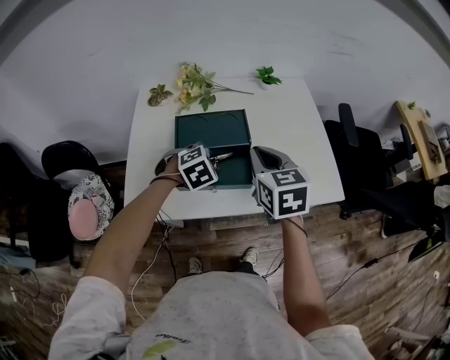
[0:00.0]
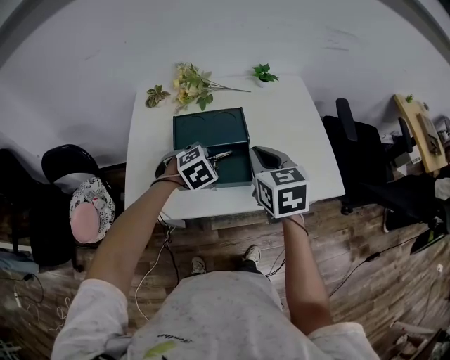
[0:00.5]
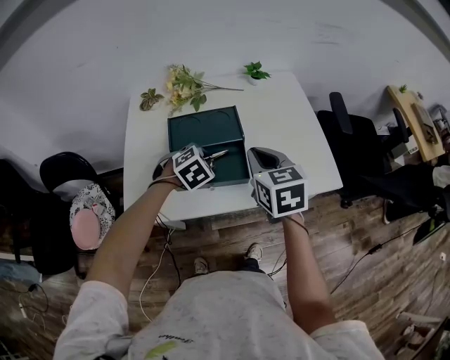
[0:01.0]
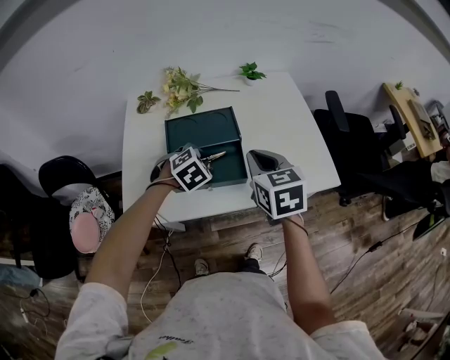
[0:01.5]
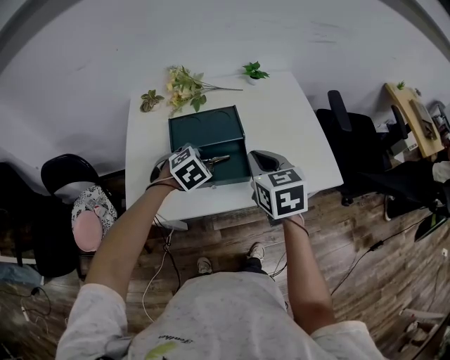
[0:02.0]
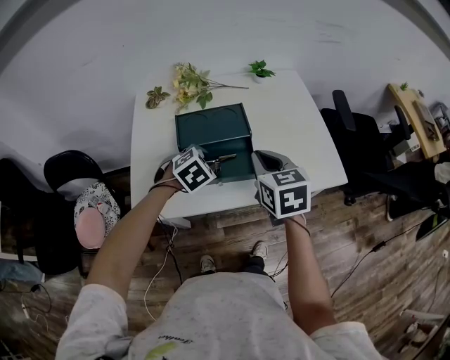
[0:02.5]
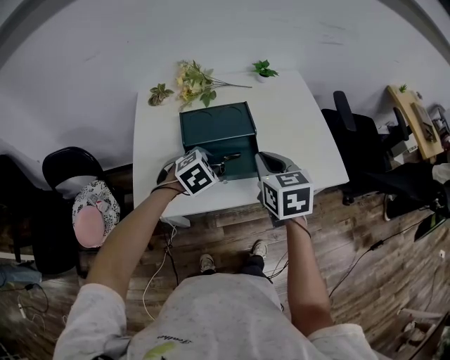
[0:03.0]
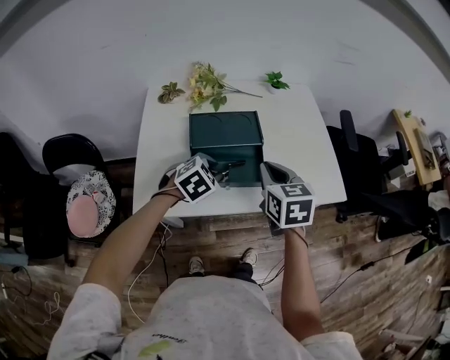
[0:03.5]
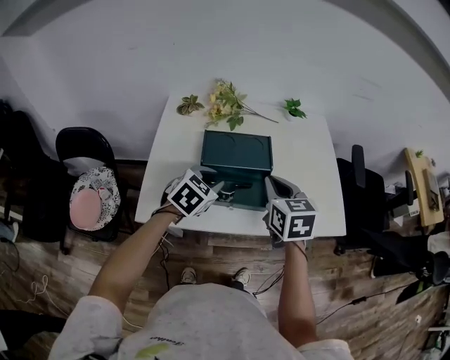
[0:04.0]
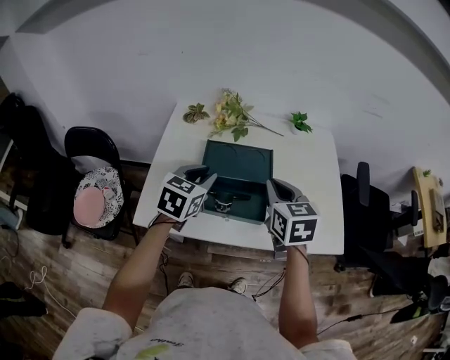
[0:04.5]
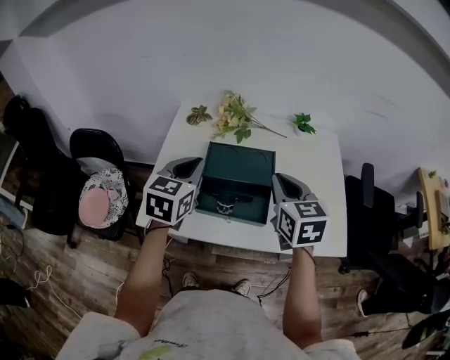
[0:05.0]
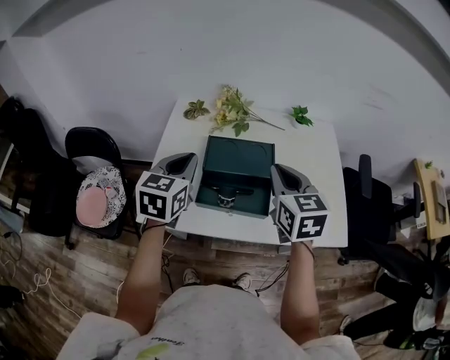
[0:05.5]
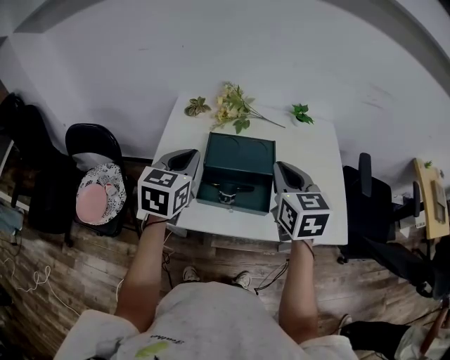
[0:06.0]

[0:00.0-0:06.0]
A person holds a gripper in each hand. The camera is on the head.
0:00.0 to 0:02.0: The grippers make only small movements.
0:02.0 to 0:04.0: The left gripper ends up some 5 cm from where it was, and swivels approximately 30 degrees.
0:04.0 to 0:06.0: The right gripper shifts roughly 5 cm upward, while the left gripper goes about 15 cm upward and to the left, turns by roughly 40 degrees, and closes up.

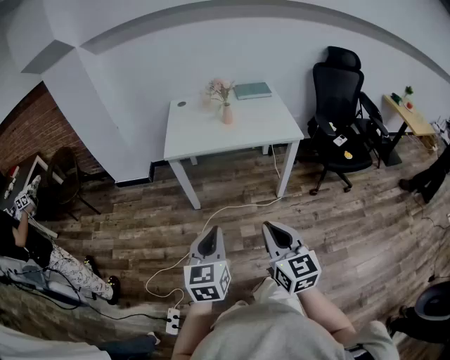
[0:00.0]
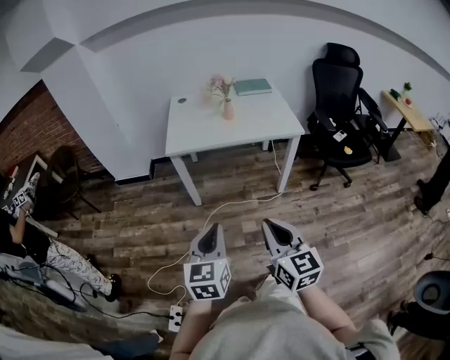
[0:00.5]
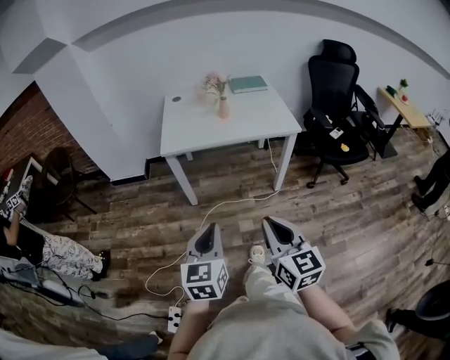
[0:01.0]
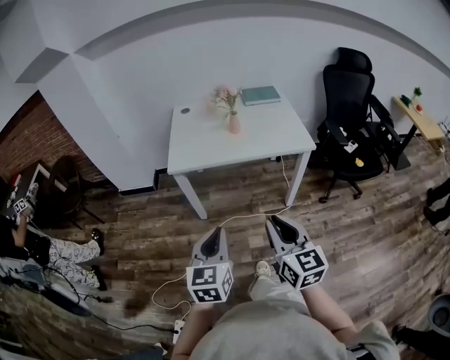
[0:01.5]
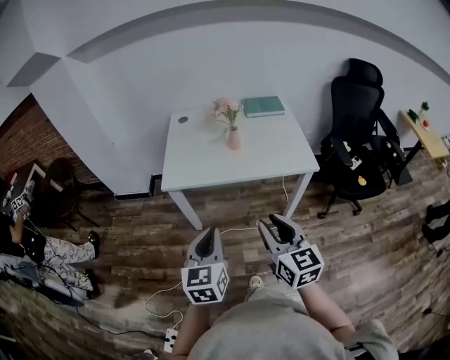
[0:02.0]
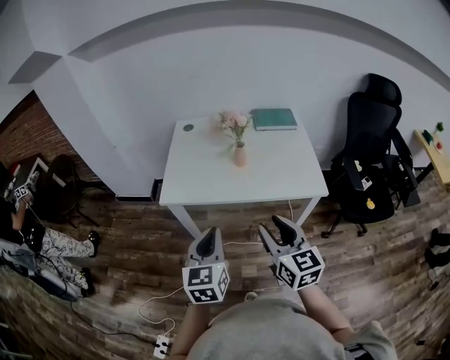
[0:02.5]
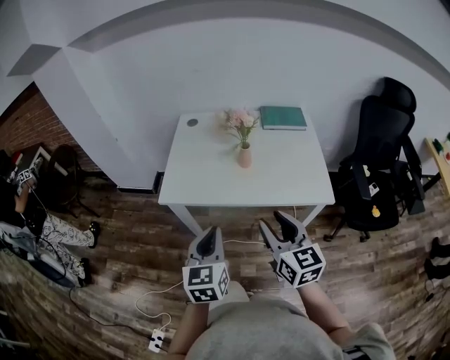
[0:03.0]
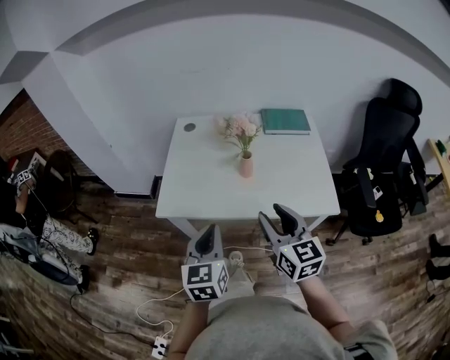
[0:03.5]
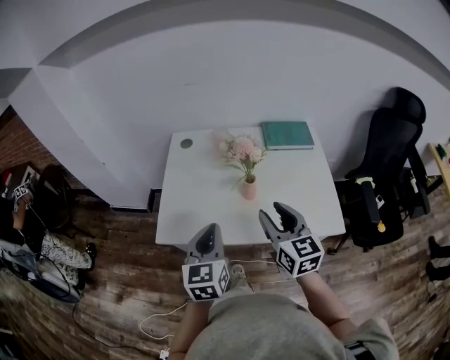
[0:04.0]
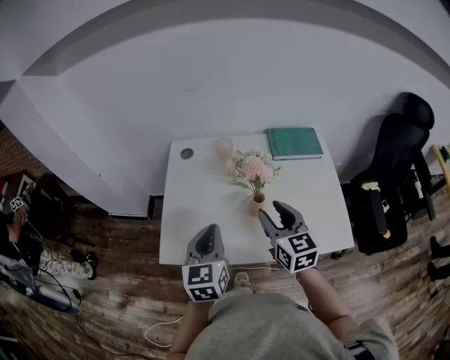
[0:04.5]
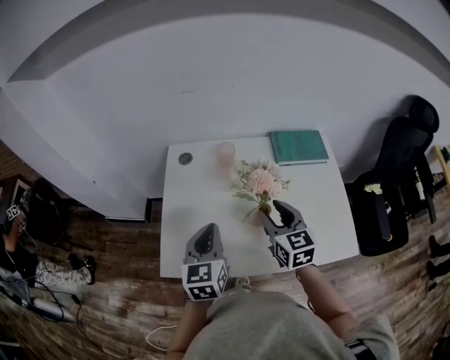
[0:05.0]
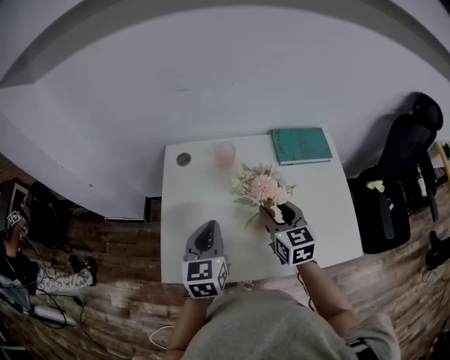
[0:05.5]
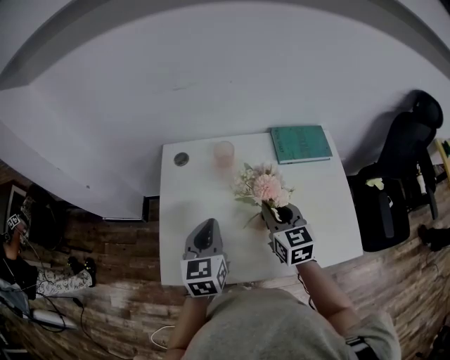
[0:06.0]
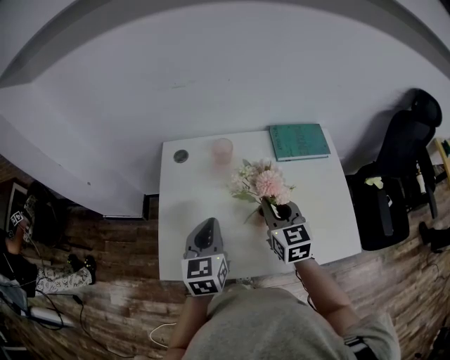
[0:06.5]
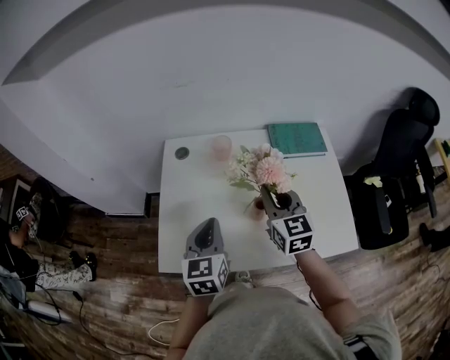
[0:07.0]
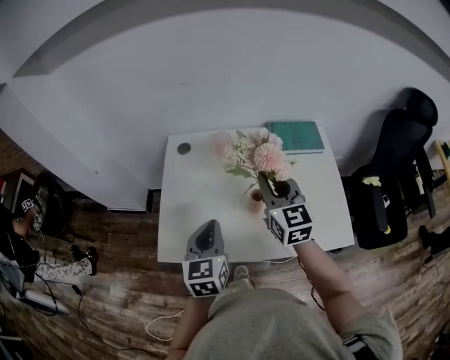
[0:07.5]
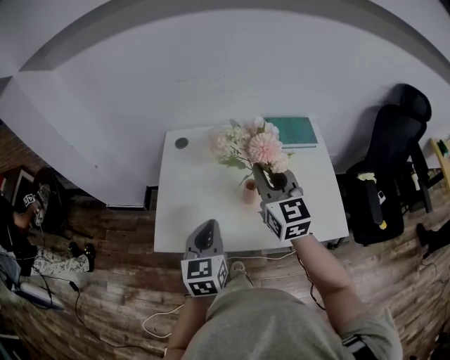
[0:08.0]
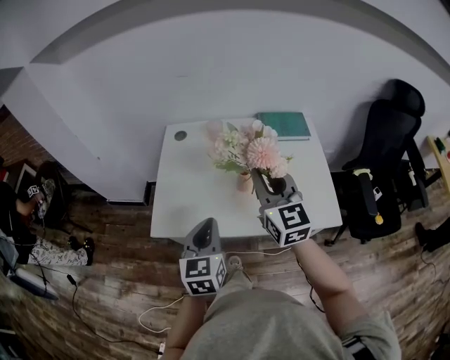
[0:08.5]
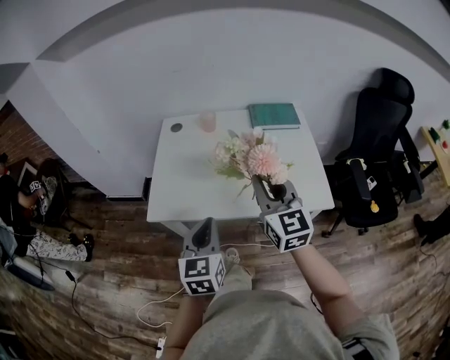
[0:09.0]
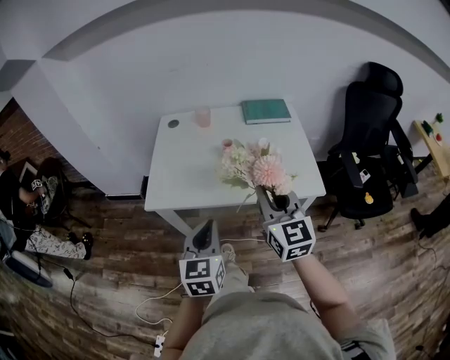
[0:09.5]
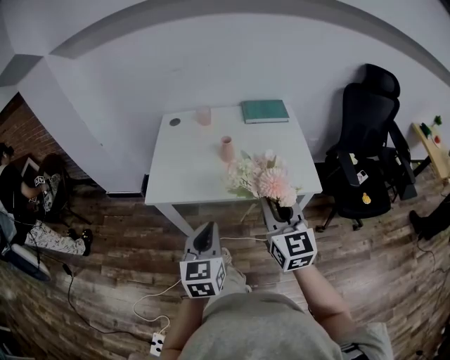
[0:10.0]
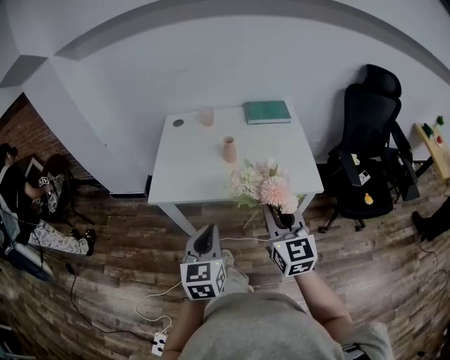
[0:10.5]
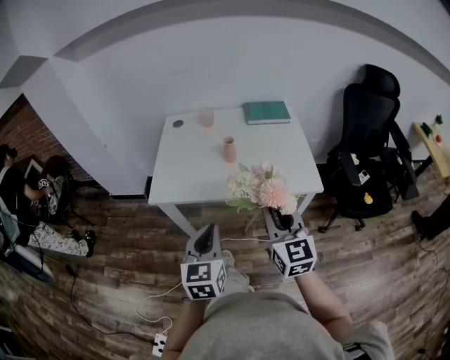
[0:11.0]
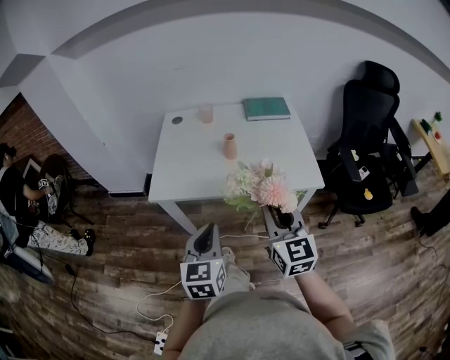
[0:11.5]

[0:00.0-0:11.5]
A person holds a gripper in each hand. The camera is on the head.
0:00.0 to 0:02.0: Both grippers move forward, approximately 25 cm. The right gripper opens its fingers.
0:02.0 to 0:04.0: Both grippers move forward, roughly 35 cm.
0:04.0 to 0:06.0: The right gripper is displaced forward and downward by approximately 20 cm, and closes its fingers. The left gripper shifts about 20 cm forward.
0:06.0 to 0:07.5: The right gripper goes about 10 cm upward, while the left gripper goes approximately 10 cm backward.
0:07.5 to 0:09.5: The grippers both shift backward by approximately 30 cm.
0:09.5 to 0:11.5: The left gripper is displaced backward by some 5 cm; the right gripper shifts about 10 cm backward.

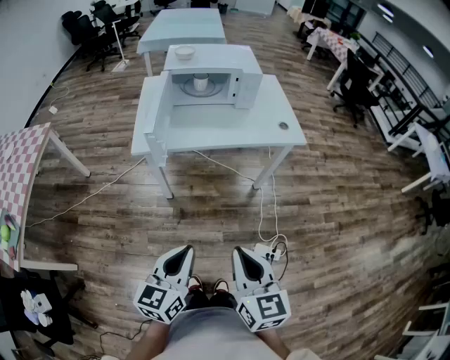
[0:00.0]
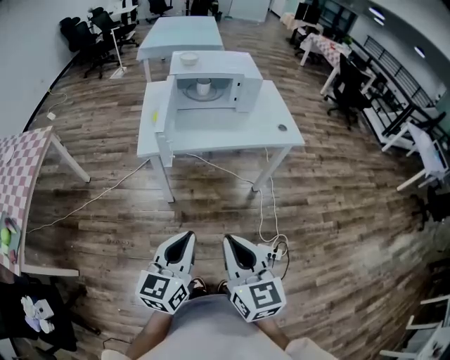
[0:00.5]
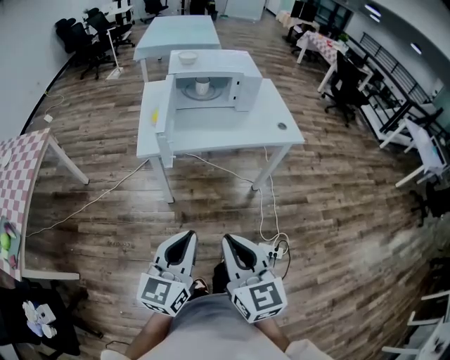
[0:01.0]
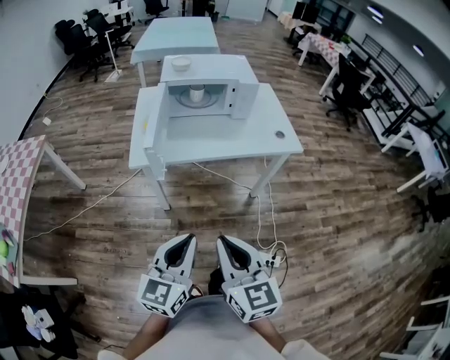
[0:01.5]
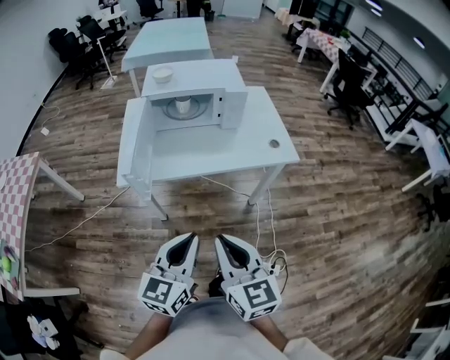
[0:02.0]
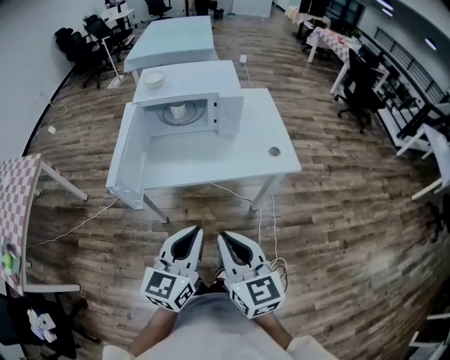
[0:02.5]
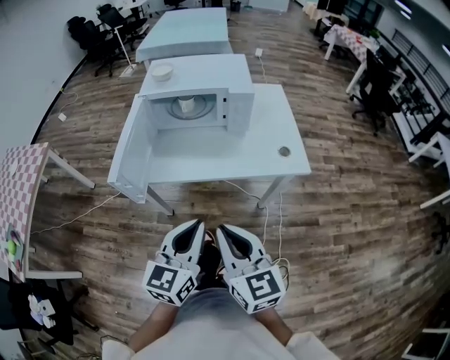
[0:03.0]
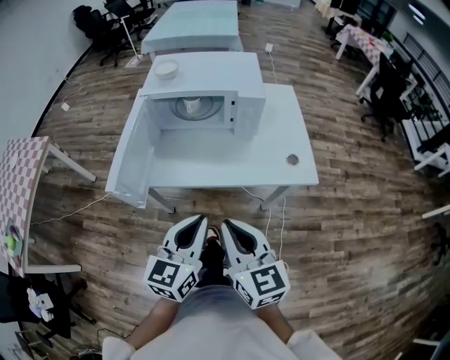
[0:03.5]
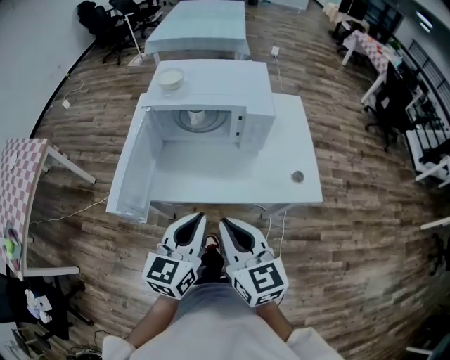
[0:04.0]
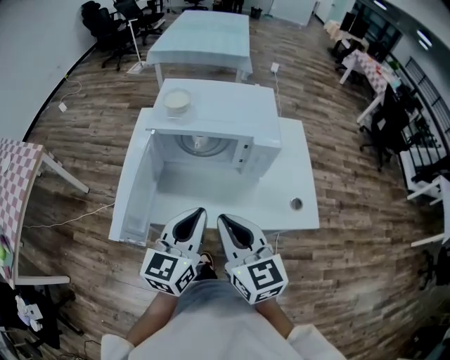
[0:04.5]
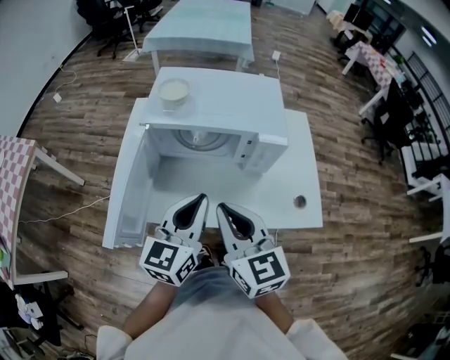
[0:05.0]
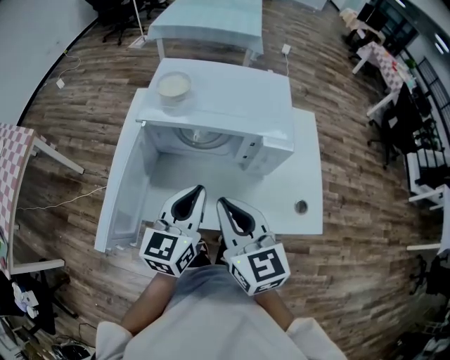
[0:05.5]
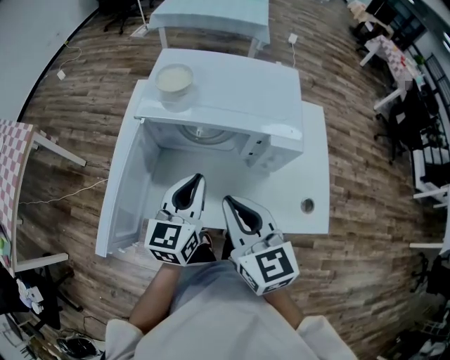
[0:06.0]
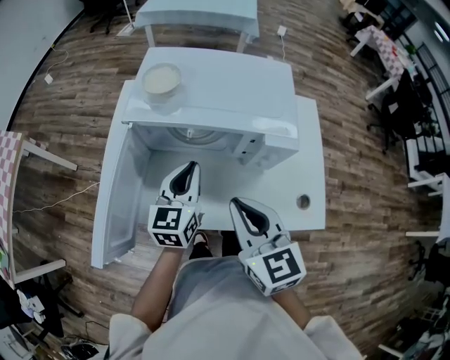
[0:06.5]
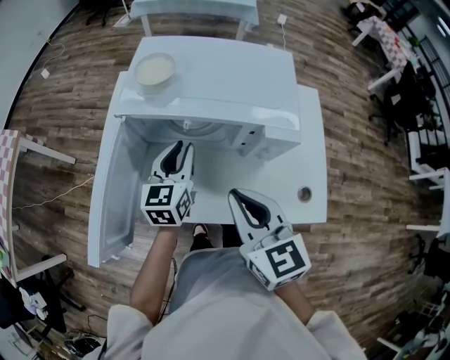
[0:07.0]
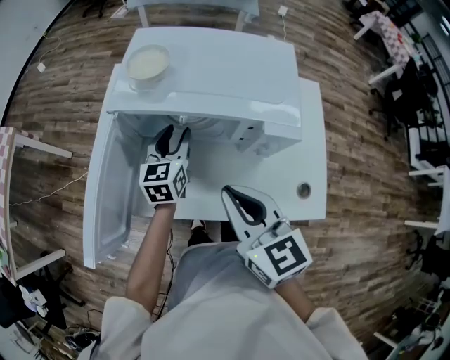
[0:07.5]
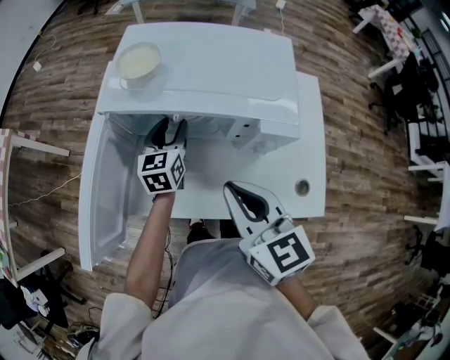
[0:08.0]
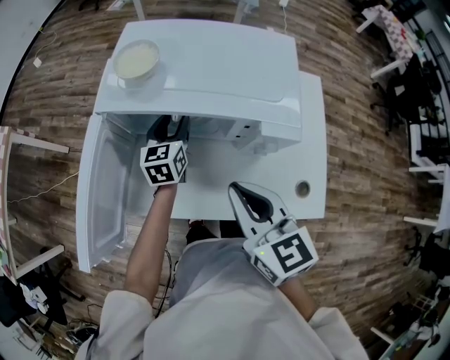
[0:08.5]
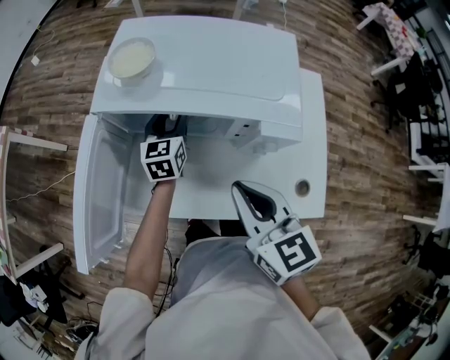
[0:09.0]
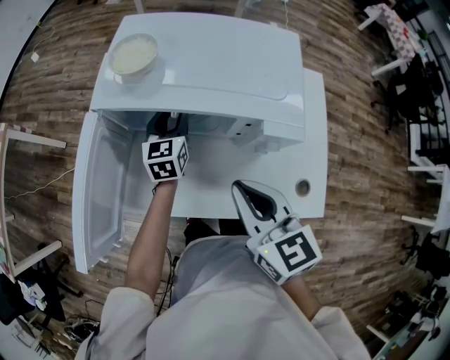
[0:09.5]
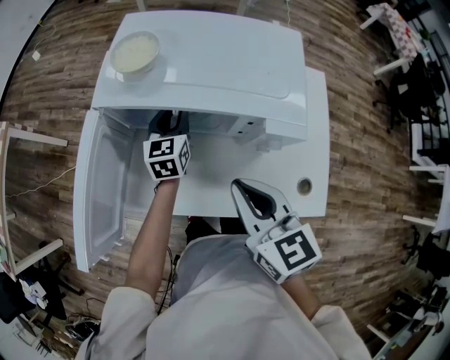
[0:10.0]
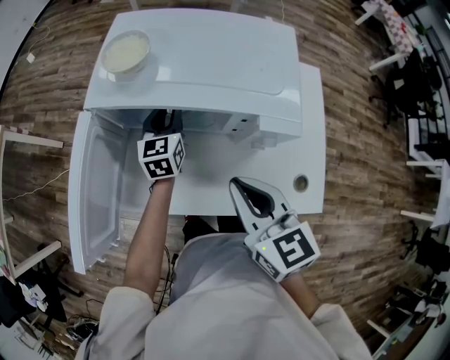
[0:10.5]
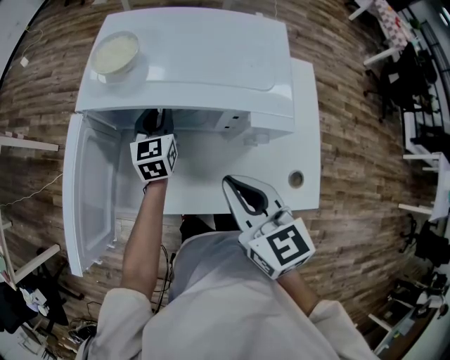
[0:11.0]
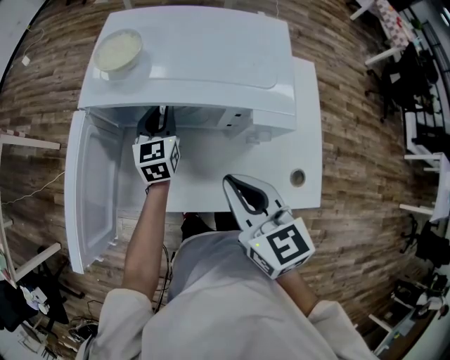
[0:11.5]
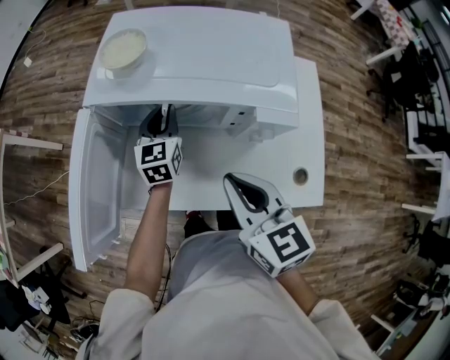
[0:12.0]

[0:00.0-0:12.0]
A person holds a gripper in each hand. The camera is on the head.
0:00.0 to 0:02.0: Both grippers travel together forward, some 15 cm.
0:02.0 to 0:04.0: The two grippers go approximately 20 cm forward.
0:04.0 to 0:06.0: Both grippers move forward, roughly 20 cm.
0:06.0 to 0:08.0: The left gripper shifts approximately 20 cm forward and downward, and opens its fingers; the right gripper moves roughly 5 cm.
0:08.0 to 0:12.0: The grippers stay close to where they were, moving slightly.
